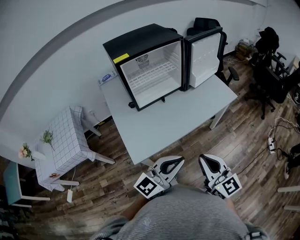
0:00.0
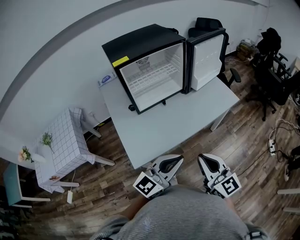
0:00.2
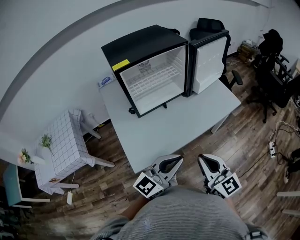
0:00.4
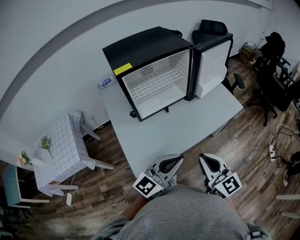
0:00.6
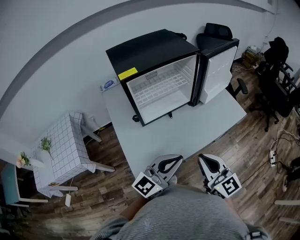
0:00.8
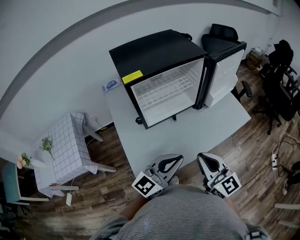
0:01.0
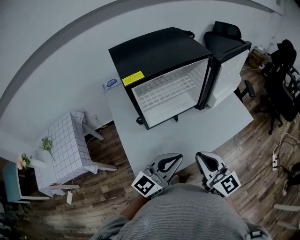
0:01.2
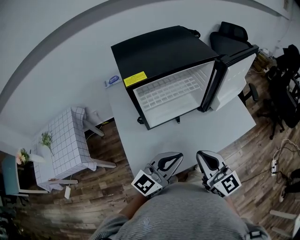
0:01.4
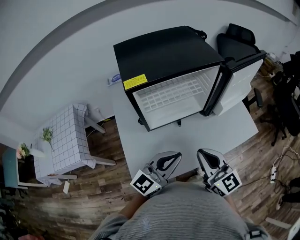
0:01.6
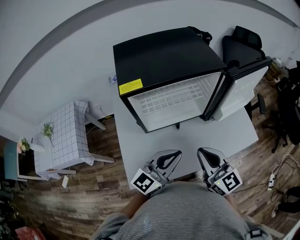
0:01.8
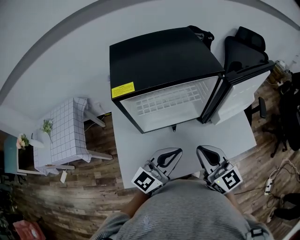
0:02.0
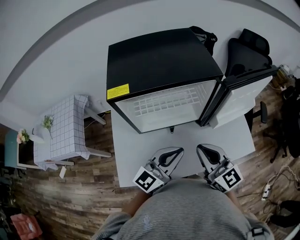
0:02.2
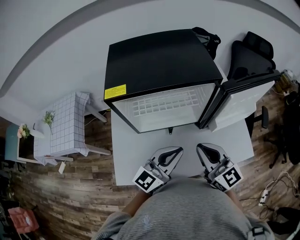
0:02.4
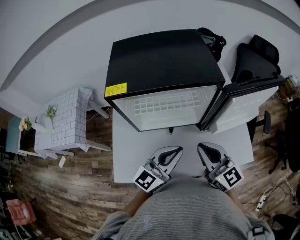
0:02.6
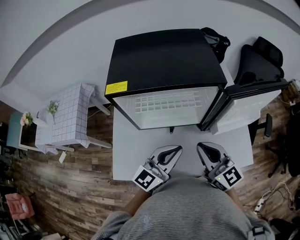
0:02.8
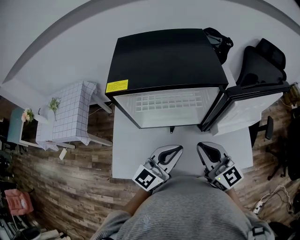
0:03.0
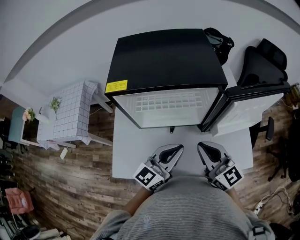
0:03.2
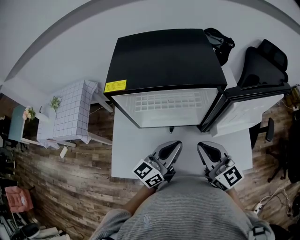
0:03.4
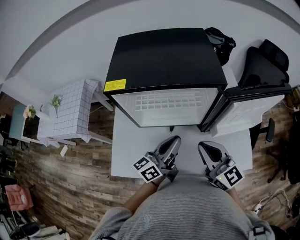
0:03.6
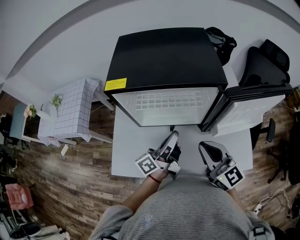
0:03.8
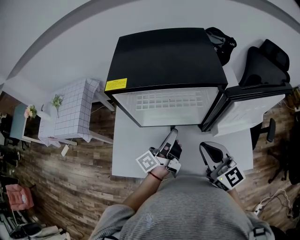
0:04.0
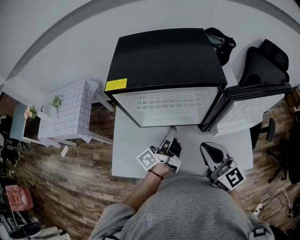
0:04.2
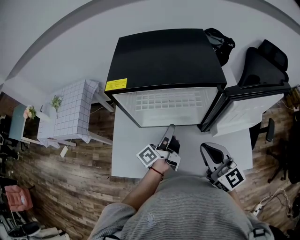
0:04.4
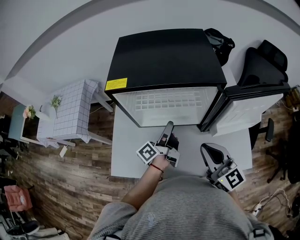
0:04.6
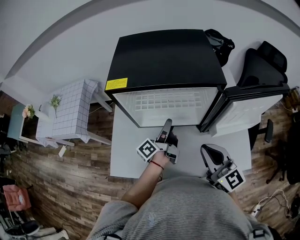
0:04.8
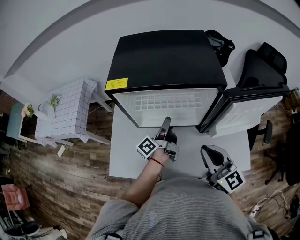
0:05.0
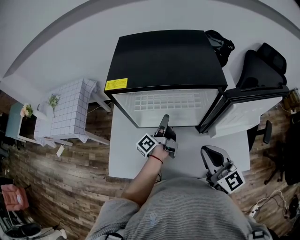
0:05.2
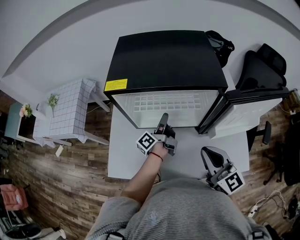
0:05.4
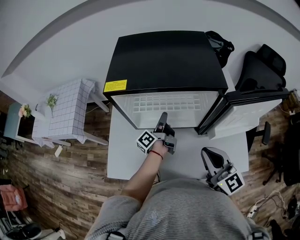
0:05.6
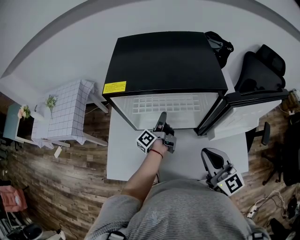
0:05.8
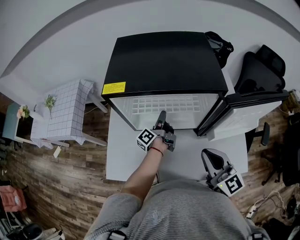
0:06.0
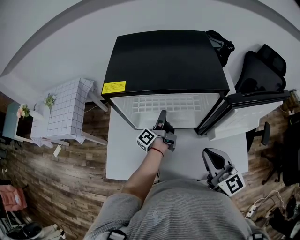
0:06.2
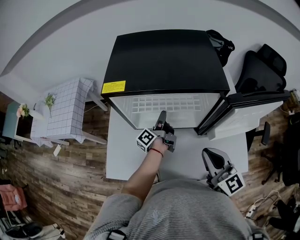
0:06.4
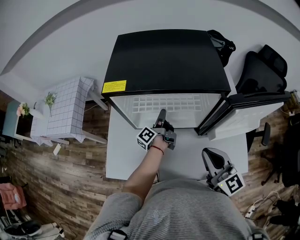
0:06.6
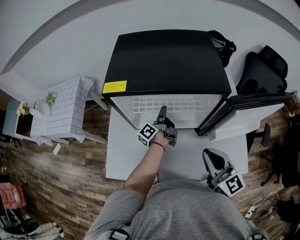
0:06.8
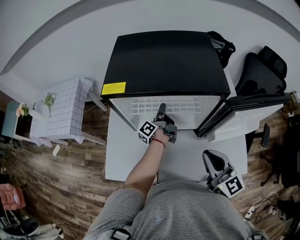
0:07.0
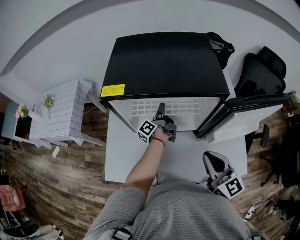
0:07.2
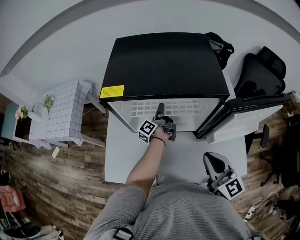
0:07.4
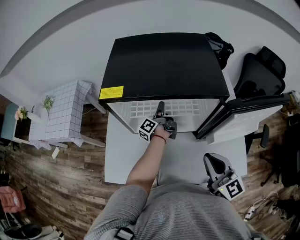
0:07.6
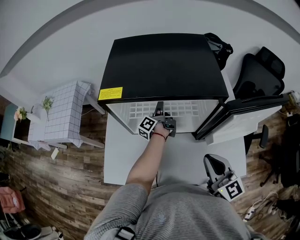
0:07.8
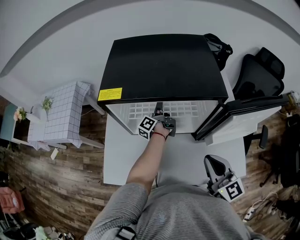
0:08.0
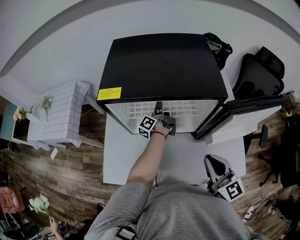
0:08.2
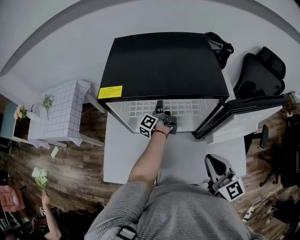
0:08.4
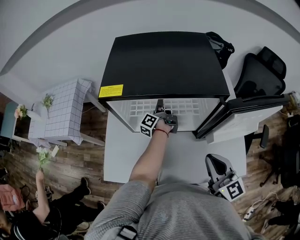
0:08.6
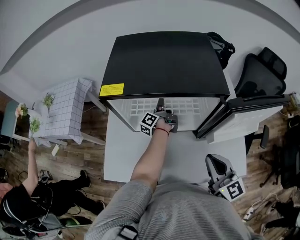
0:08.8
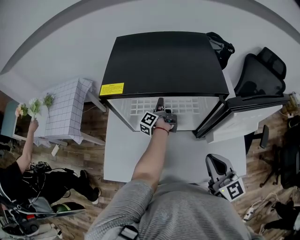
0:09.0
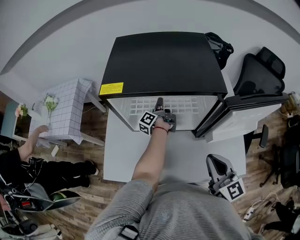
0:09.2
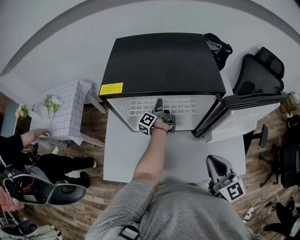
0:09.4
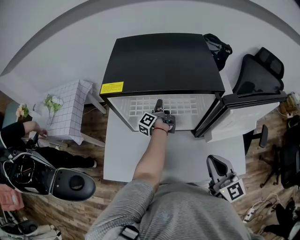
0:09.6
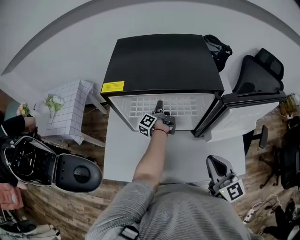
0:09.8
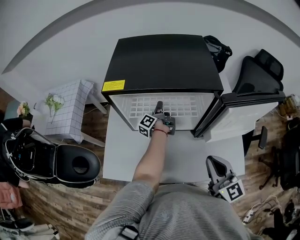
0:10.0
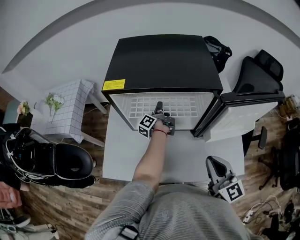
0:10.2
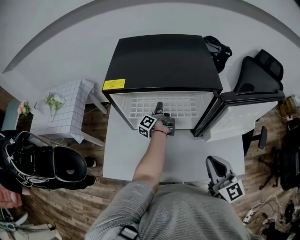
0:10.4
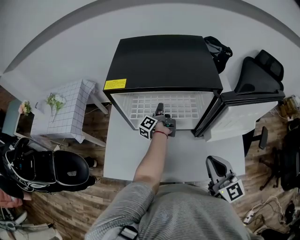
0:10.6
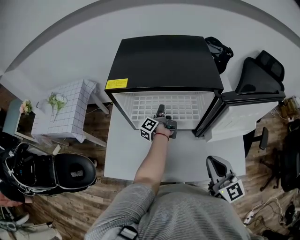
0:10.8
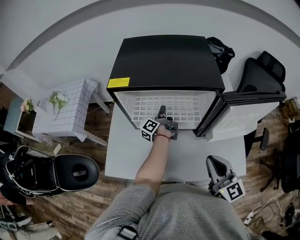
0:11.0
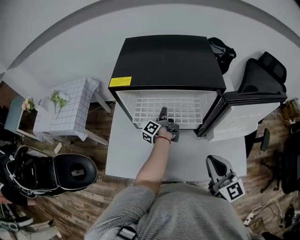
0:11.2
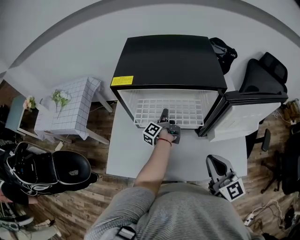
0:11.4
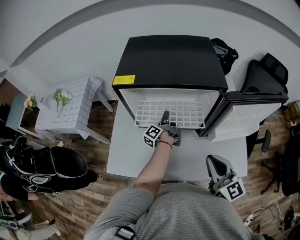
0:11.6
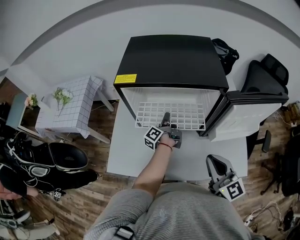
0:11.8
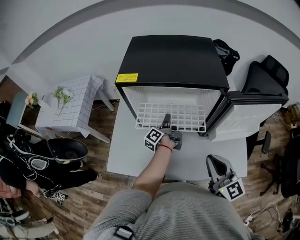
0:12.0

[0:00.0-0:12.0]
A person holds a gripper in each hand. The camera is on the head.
0:00.0 to 0:01.6: The two grippers go about 25 cm forward.
0:01.6 to 0:03.0: The right gripper goes approximately 15 cm forward and to the right; the left gripper travels to the right and forward by approximately 15 cm.
0:03.0 to 0:04.4: The left gripper travels forward and downward by roughly 10 cm, twists roughly 70 degrees counterclockwise, seen from behind, and opens its fingers.
0:04.4 to 0:06.0: The left gripper travels forward and downward by some 15 cm.
0:06.0 to 0:07.6: The left gripper is displaced forward by roughly 5 cm.
0:07.6 to 0:10.4: There are only small adjustments of the grippers.
0:10.4 to 0:12.0: The left gripper moves backward, roughly 10 cm.

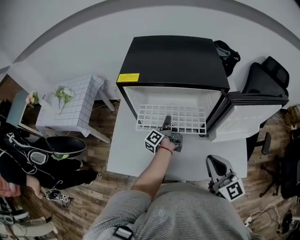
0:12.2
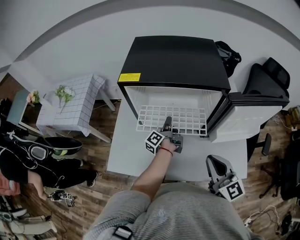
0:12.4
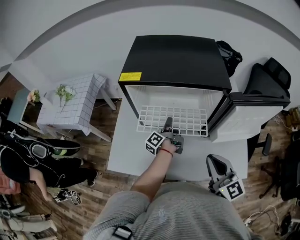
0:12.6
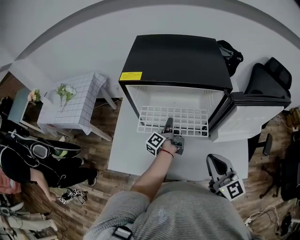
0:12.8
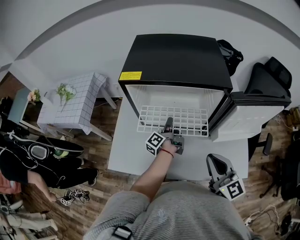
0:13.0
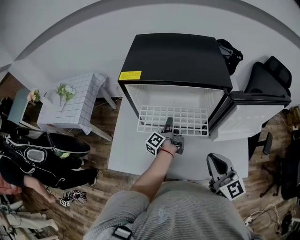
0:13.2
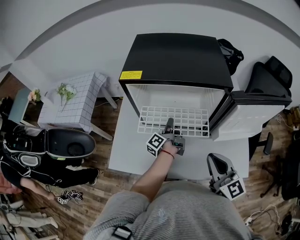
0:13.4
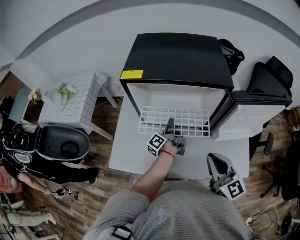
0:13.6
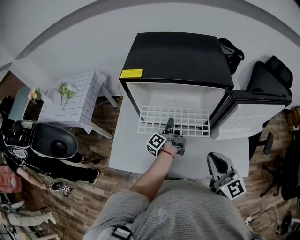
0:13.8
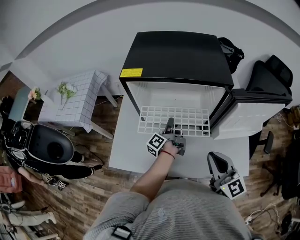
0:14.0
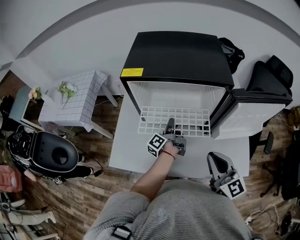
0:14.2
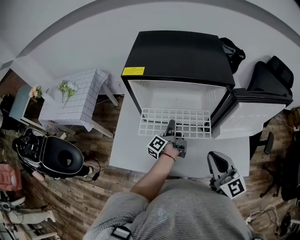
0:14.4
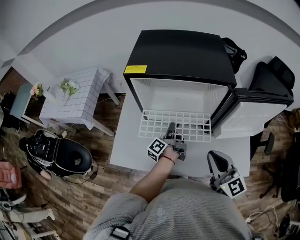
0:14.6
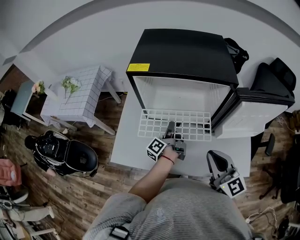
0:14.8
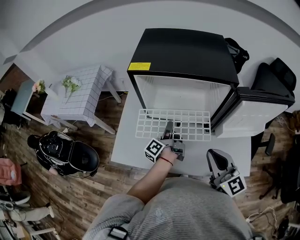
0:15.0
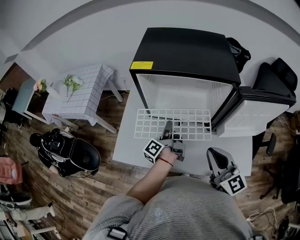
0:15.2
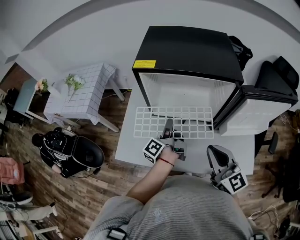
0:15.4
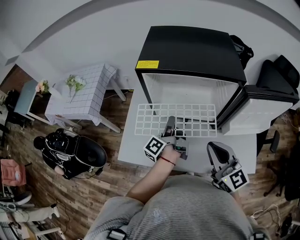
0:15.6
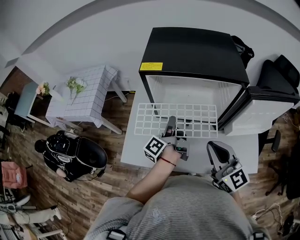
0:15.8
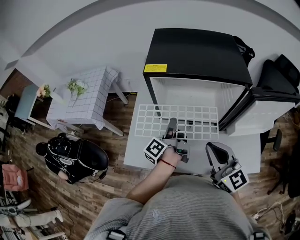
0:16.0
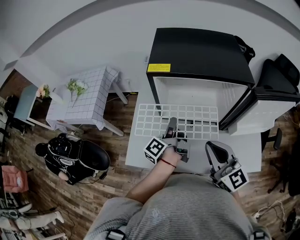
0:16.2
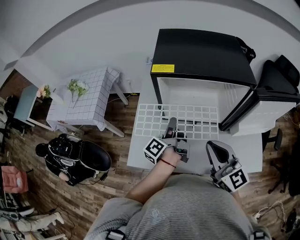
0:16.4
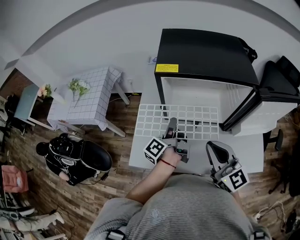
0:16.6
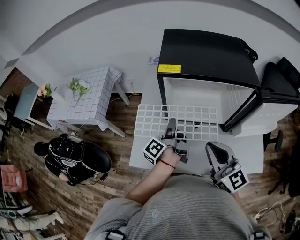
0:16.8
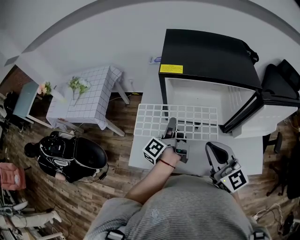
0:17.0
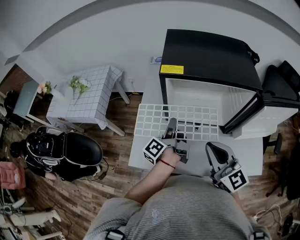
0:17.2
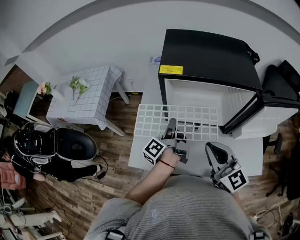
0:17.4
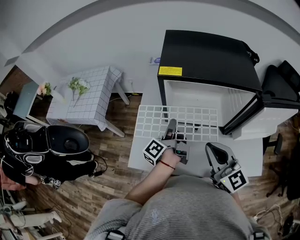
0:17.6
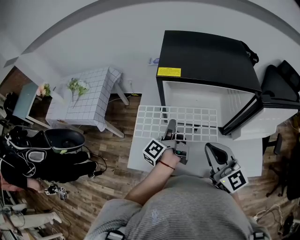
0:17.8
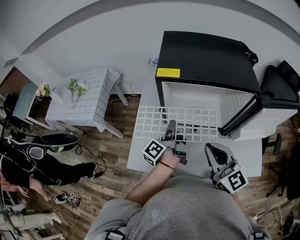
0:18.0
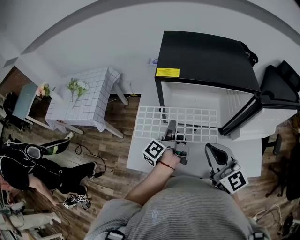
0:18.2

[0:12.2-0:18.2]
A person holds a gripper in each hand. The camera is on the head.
0:12.2 to 0:13.8: There are only small adjustments of the grippers.
0:13.8 to 0:15.2: The left gripper moves to the left and backward, roughly 5 cm.
0:15.2 to 0:16.6: The left gripper moves to the left and upward, roughly 10 cm. Meanwhile the right gripper is displaced to the left and forward by roughly 10 cm.
0:16.6 to 0:18.2: The grippers stay close to where they were, moving slightly.

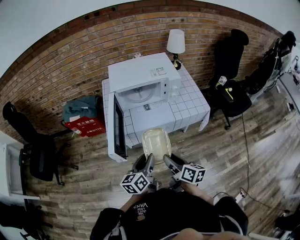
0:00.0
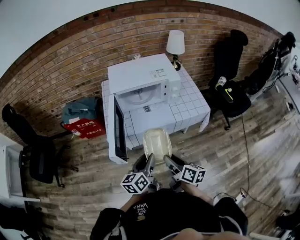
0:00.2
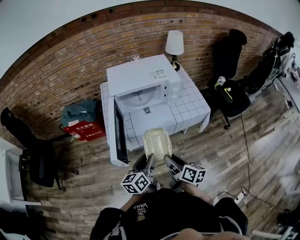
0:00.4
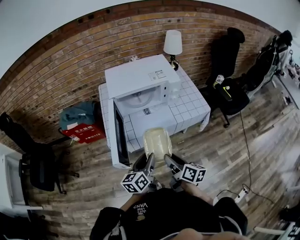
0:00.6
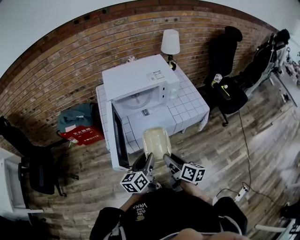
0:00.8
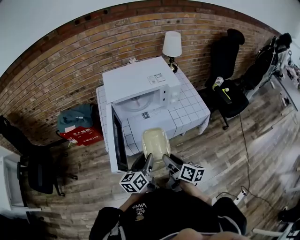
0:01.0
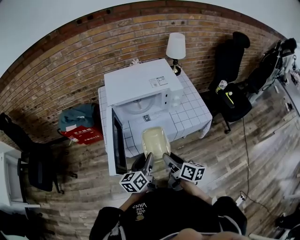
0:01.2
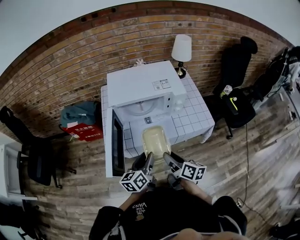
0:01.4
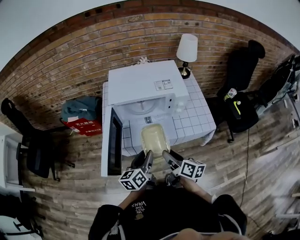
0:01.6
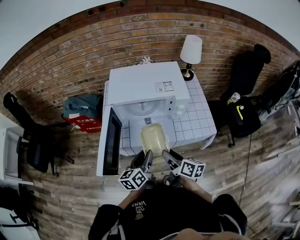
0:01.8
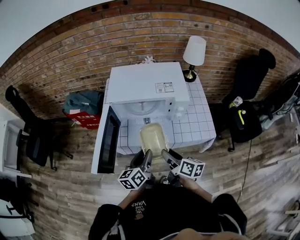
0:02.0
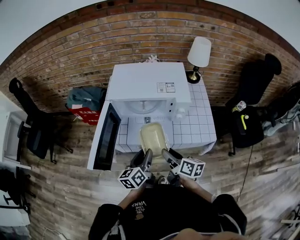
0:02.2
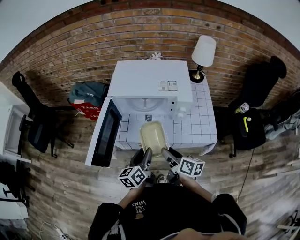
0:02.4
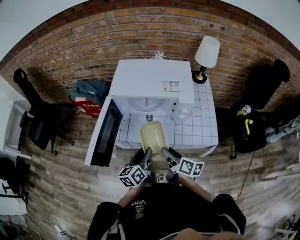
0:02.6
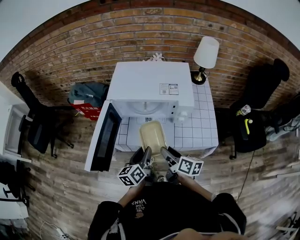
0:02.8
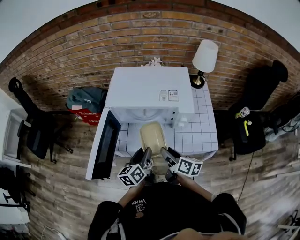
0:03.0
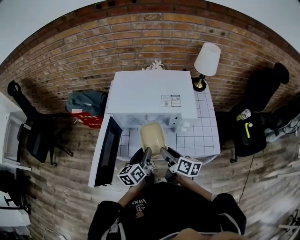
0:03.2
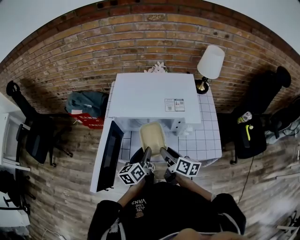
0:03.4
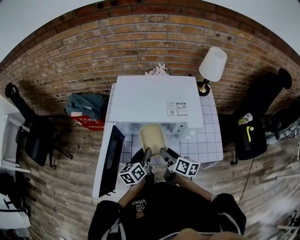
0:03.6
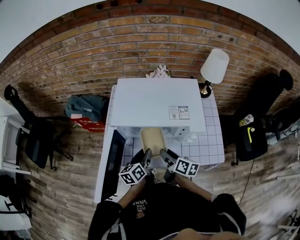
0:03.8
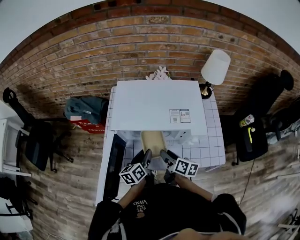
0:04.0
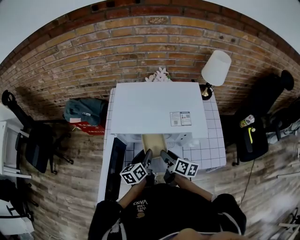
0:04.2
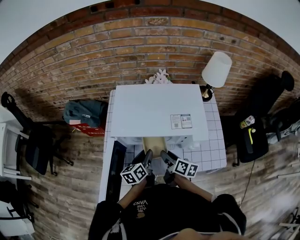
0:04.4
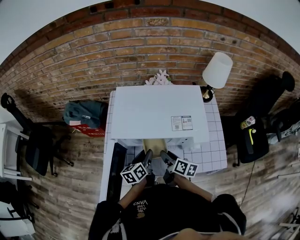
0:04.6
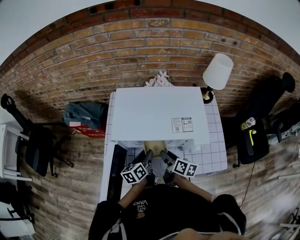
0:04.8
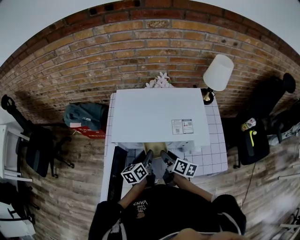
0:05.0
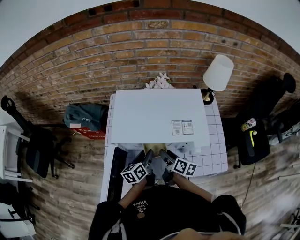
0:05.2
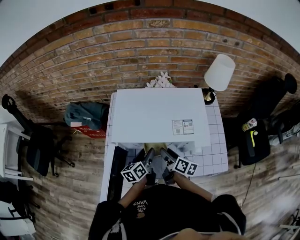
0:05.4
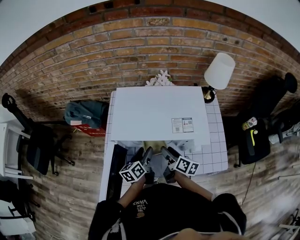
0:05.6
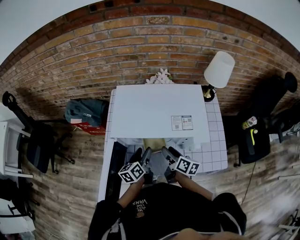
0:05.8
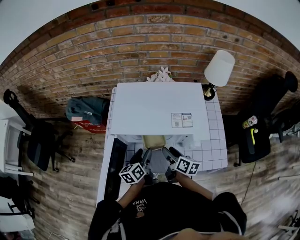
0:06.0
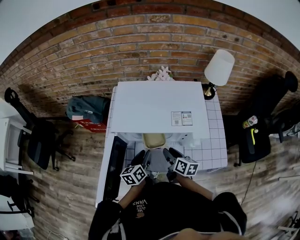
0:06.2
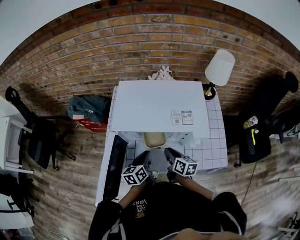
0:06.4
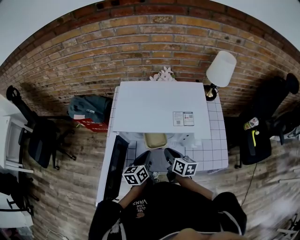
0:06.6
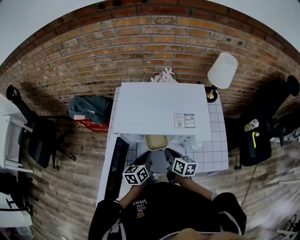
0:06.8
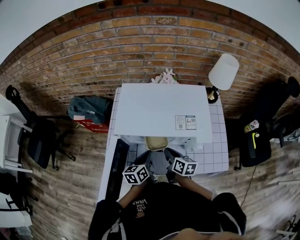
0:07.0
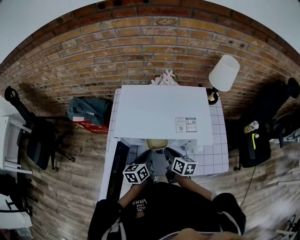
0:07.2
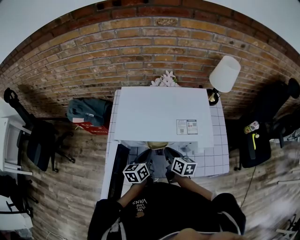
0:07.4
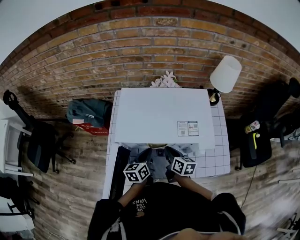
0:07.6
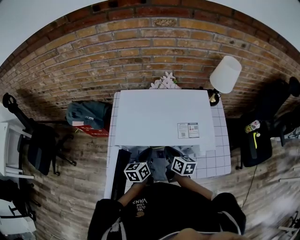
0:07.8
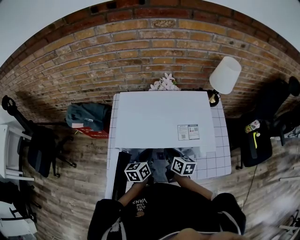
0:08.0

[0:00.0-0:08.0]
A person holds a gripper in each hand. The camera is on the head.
0:00.0 to 0:01.6: The grippers both shift forward by roughly 15 cm.
0:01.6 to 0:03.2: Both grippers move forward, about 10 cm.
0:03.2 to 0:04.8: Both grippers travel together forward and downward, some 15 cm.
0:04.8 to 0:06.4: The right gripper closes, while the left gripper closes its fingers.
0:06.4 to 0:08.0: Both grippers move forward, some 10 cm.
